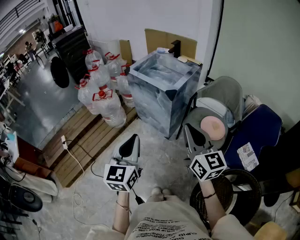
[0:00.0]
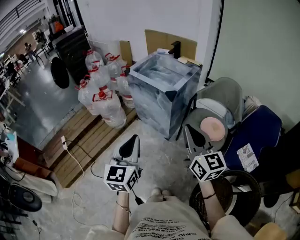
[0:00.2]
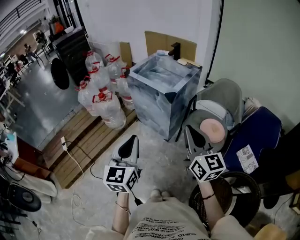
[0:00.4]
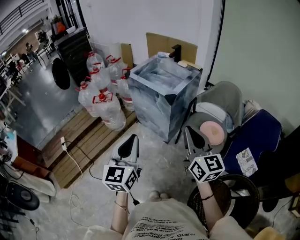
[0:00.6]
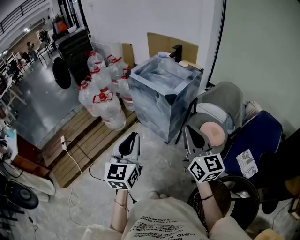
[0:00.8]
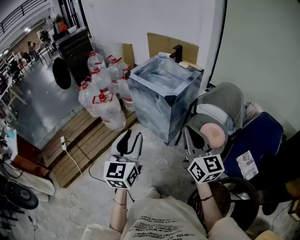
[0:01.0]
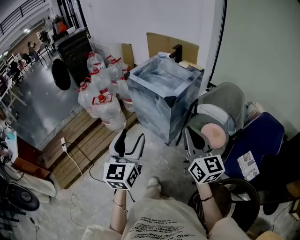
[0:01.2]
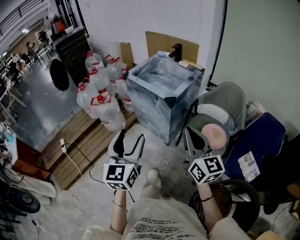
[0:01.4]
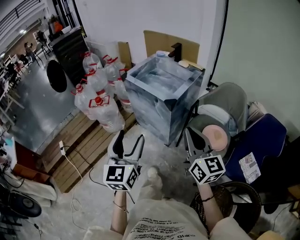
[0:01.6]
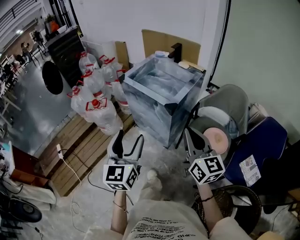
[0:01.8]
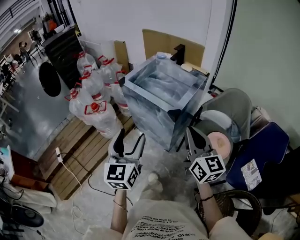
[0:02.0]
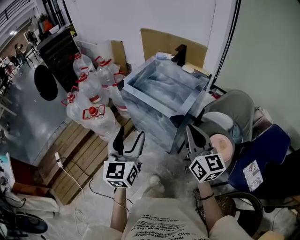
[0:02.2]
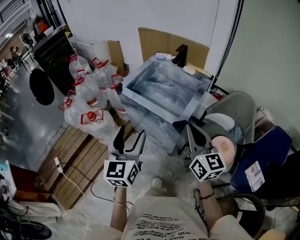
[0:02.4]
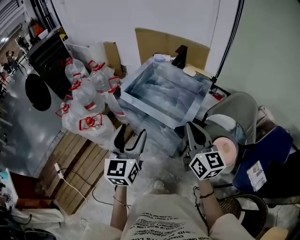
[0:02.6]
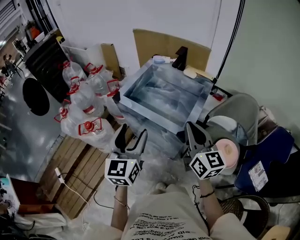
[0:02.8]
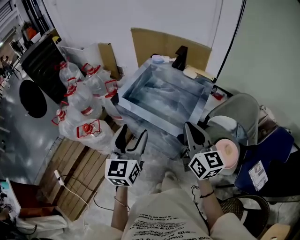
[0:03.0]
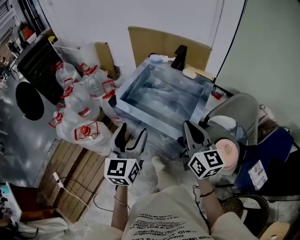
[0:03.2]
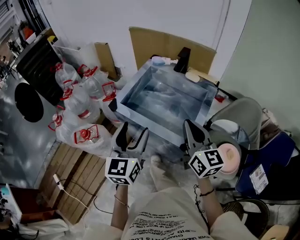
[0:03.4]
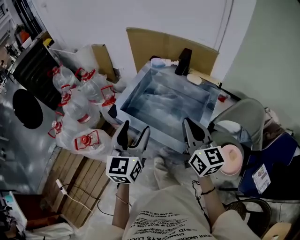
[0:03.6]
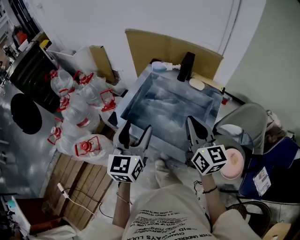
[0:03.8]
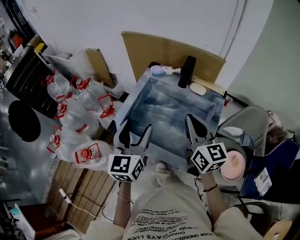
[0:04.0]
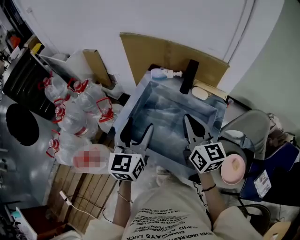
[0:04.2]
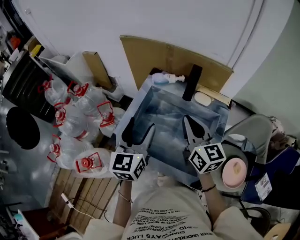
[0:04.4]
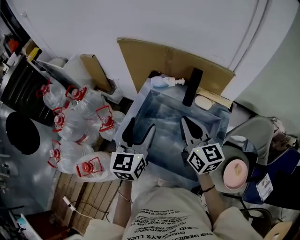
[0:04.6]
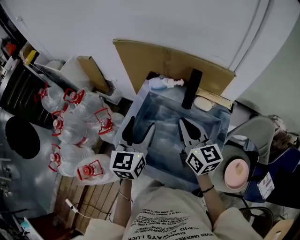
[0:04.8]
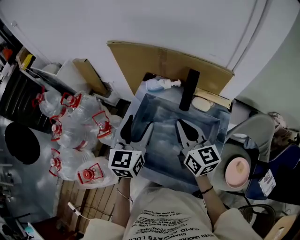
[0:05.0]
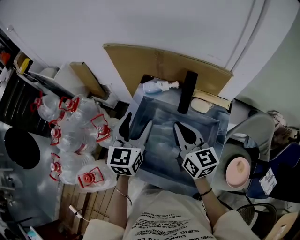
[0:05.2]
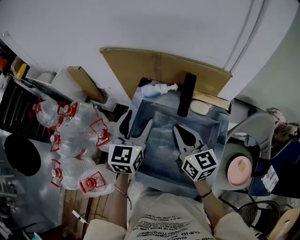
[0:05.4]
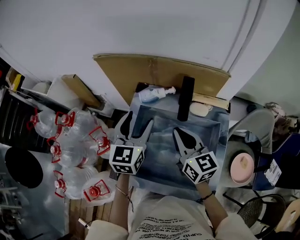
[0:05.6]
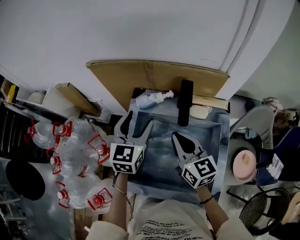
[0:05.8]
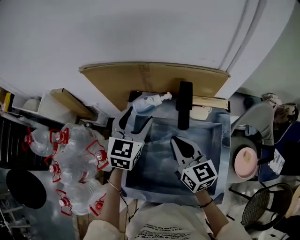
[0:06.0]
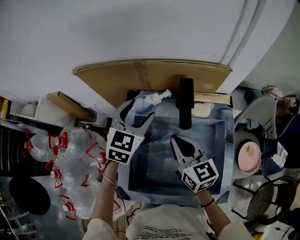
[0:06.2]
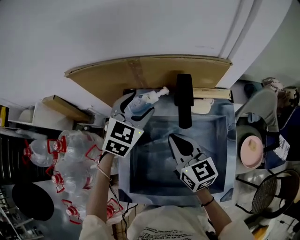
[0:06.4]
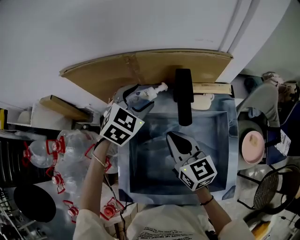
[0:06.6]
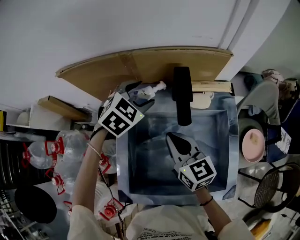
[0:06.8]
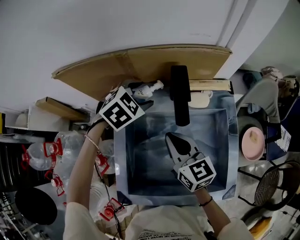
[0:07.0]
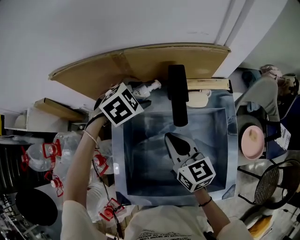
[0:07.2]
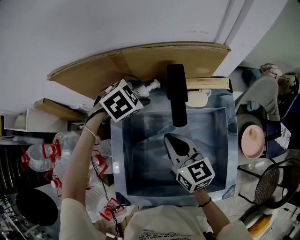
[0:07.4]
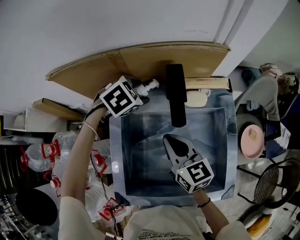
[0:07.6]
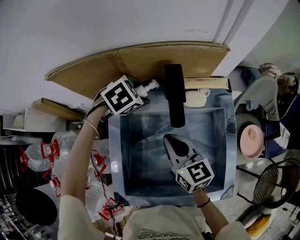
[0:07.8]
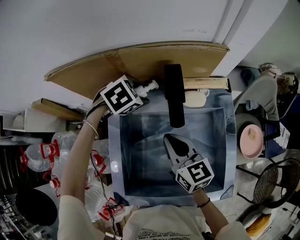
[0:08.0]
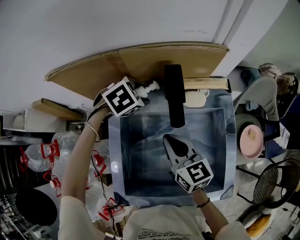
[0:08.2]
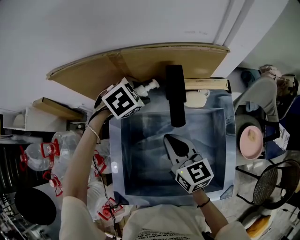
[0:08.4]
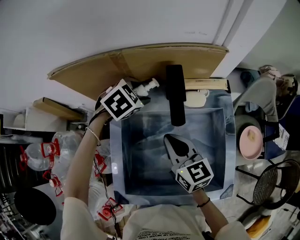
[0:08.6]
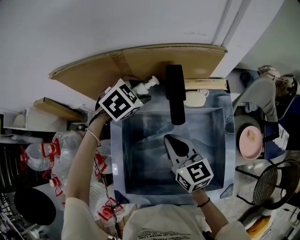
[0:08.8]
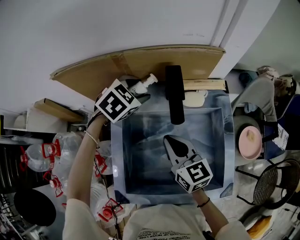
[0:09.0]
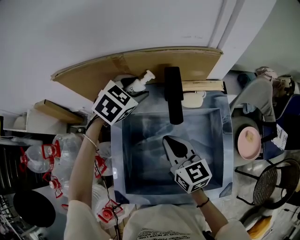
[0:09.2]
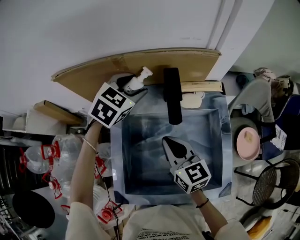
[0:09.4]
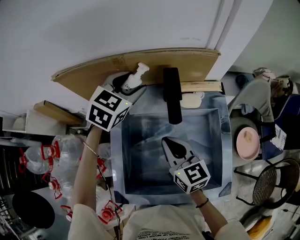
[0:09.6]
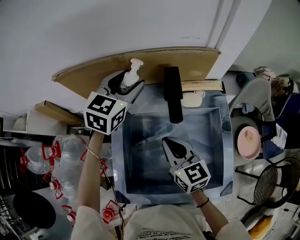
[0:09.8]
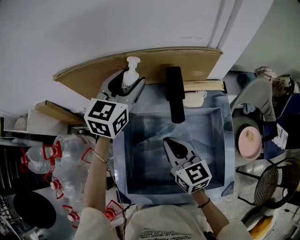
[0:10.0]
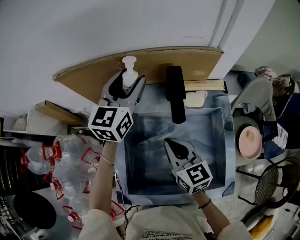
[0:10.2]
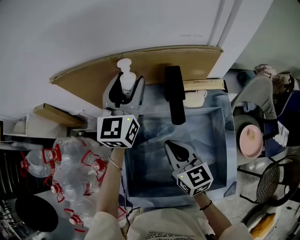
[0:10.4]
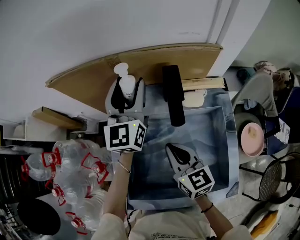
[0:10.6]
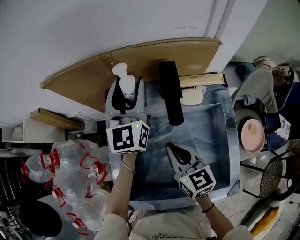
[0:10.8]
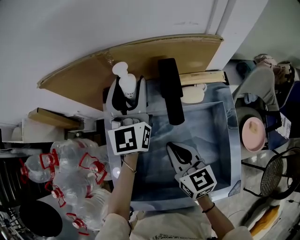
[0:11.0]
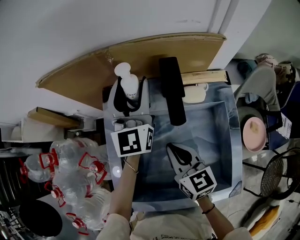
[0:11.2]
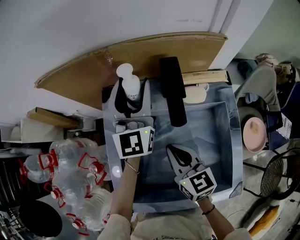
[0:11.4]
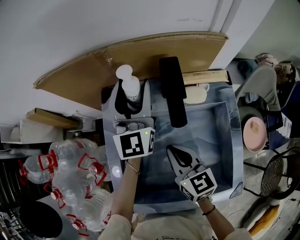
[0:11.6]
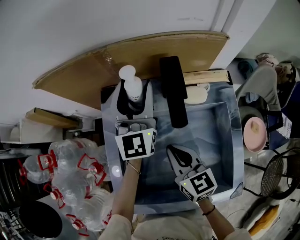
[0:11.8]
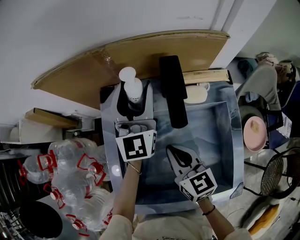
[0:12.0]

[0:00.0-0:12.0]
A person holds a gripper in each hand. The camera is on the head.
0.0 to 1.6 s: Both grippers travel together forward, approximately 10 cm. The left gripper opens.
1.6 to 3.0 s: The grippers both shift forward by approximately 30 cm.
3.0 to 4.4 s: The grippers both shift forward by some 30 cm.
4.4 to 6.0 s: The left gripper travels forward by approximately 20 cm, and rotates roughly 30 degrees, while the right gripper goes some 10 cm forward and downward.
6.0 to 7.6 s: The left gripper heads downward and forward, covering some 15 cm, and tilts its fingers about 40 degrees downward; the right gripper travels downward by about 5 cm.
7.6 to 9.0 s: The grippers stay close to where they were, moving slightly.
9.0 to 10.4 s: The left gripper travels upward by roughly 10 cm, and tips its fingers upward by roughly 50 degrees.
10.4 to 12.0 s: The left gripper ends up approximately 5 cm from where it was.

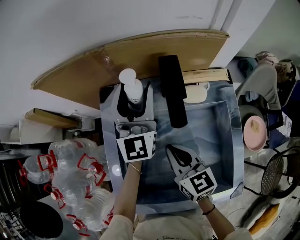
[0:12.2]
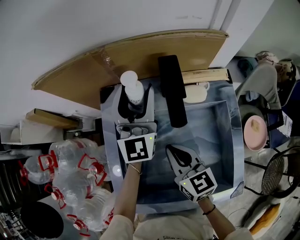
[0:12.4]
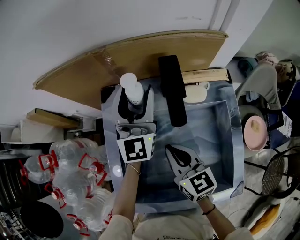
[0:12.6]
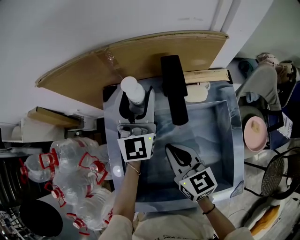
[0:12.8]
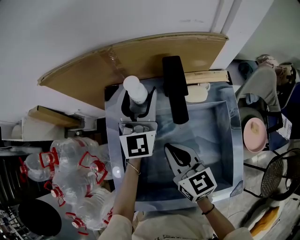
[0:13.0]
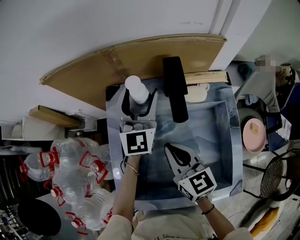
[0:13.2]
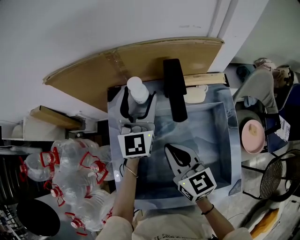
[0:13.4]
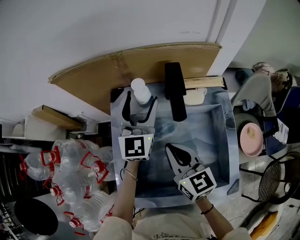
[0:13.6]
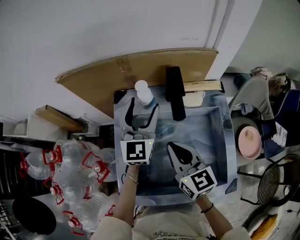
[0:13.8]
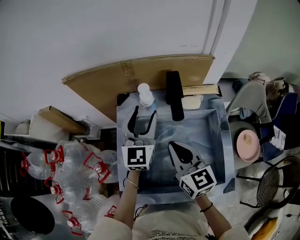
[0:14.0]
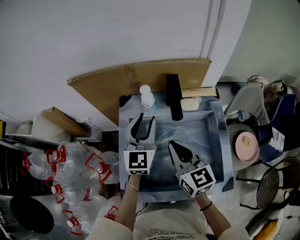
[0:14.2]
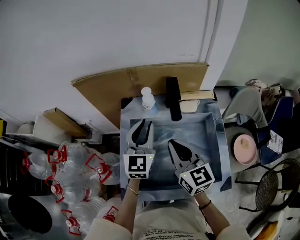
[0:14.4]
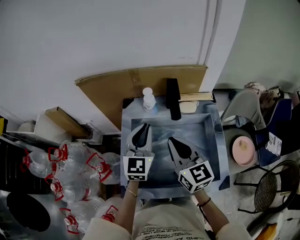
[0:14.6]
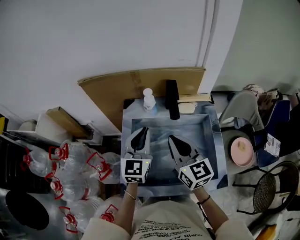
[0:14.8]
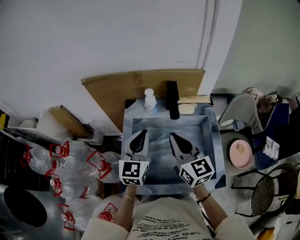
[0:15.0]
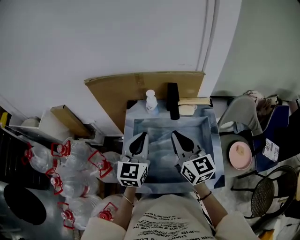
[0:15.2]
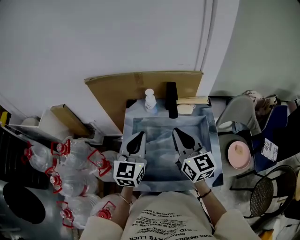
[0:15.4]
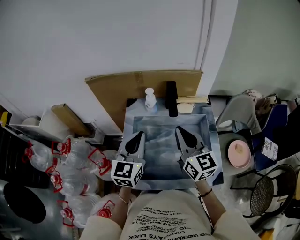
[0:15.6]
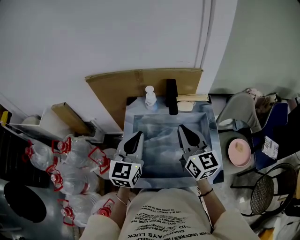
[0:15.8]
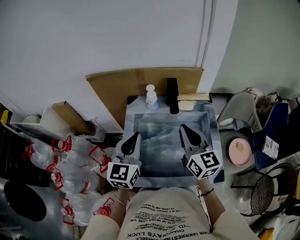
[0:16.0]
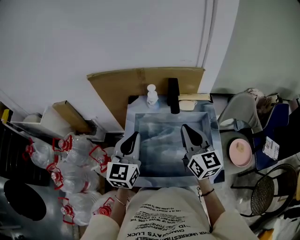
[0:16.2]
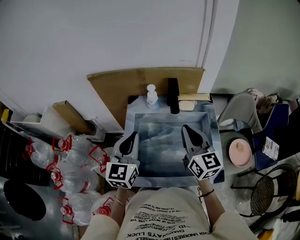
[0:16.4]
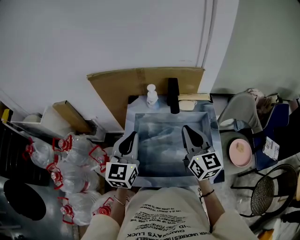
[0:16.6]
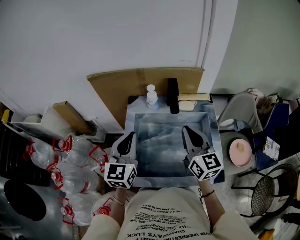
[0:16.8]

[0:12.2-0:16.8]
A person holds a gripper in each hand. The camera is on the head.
12.2 to 13.8 s: The right gripper is displaced upward by roughly 5 cm. Meanwhile the left gripper shifts by roughly 5 cm.
13.8 to 15.2 s: The right gripper goes about 10 cm upward. Meanwhile the left gripper goes approximately 15 cm backward, and closes its fingers.
15.2 to 16.8 s: The left gripper moves approximately 5 cm.

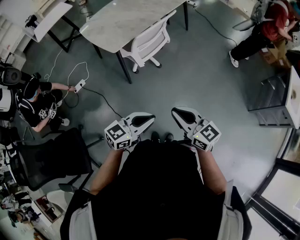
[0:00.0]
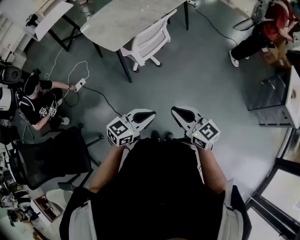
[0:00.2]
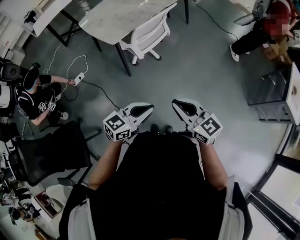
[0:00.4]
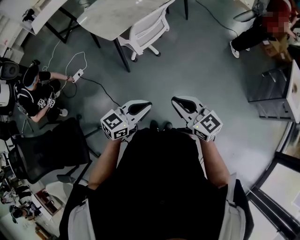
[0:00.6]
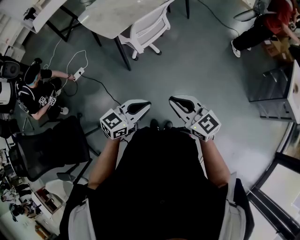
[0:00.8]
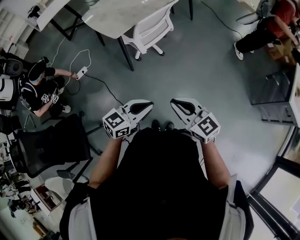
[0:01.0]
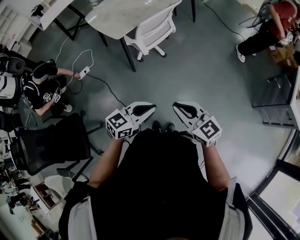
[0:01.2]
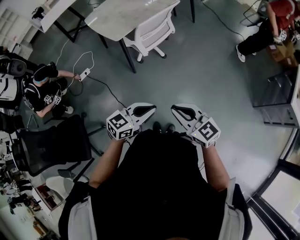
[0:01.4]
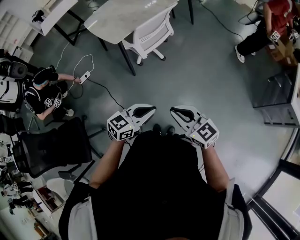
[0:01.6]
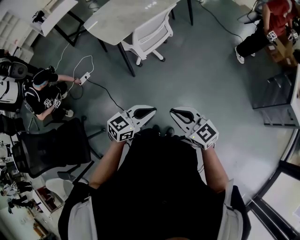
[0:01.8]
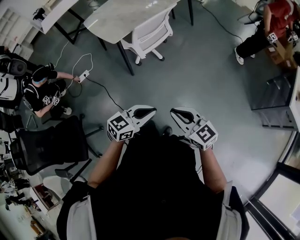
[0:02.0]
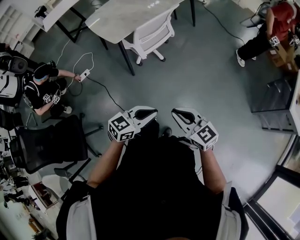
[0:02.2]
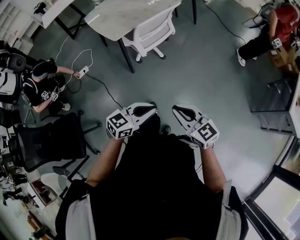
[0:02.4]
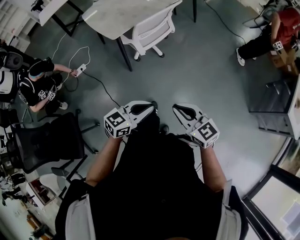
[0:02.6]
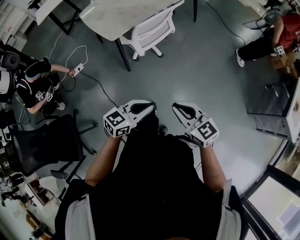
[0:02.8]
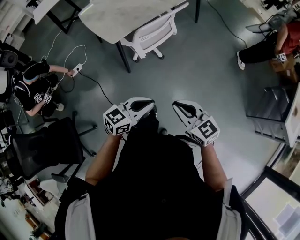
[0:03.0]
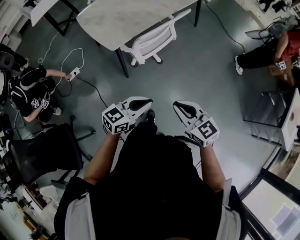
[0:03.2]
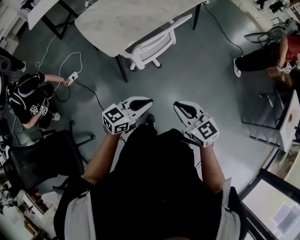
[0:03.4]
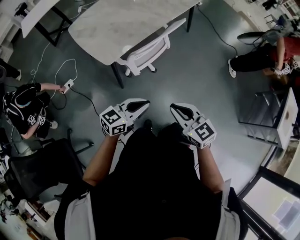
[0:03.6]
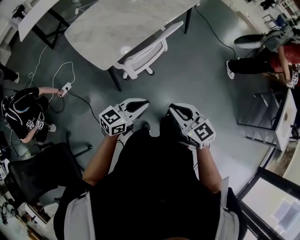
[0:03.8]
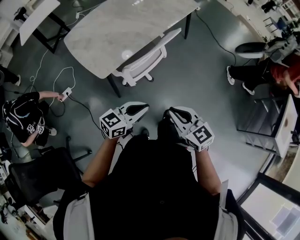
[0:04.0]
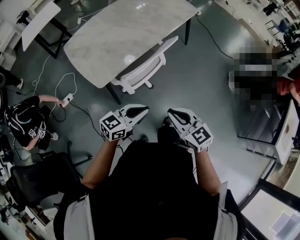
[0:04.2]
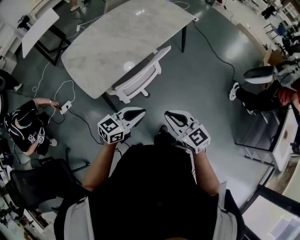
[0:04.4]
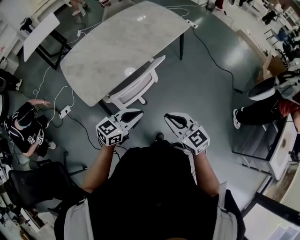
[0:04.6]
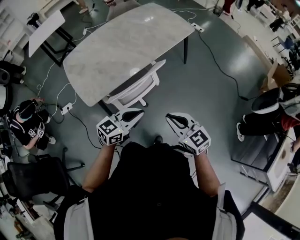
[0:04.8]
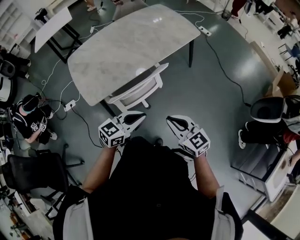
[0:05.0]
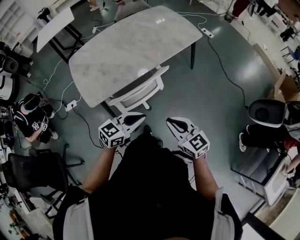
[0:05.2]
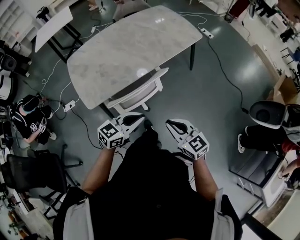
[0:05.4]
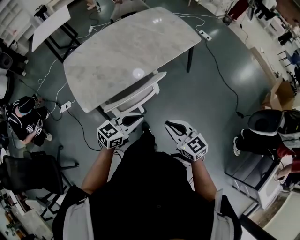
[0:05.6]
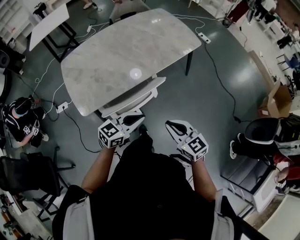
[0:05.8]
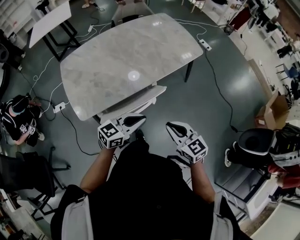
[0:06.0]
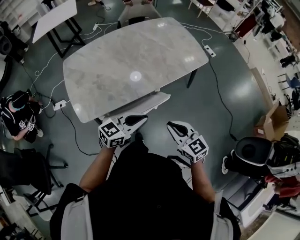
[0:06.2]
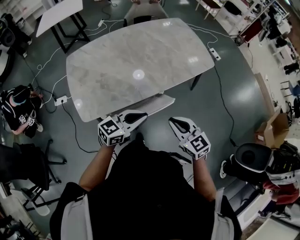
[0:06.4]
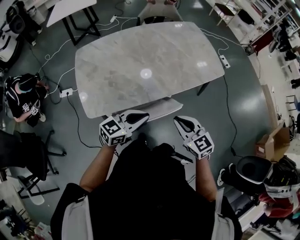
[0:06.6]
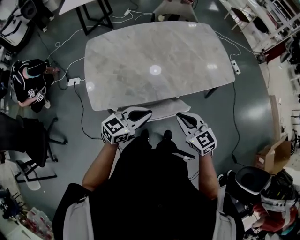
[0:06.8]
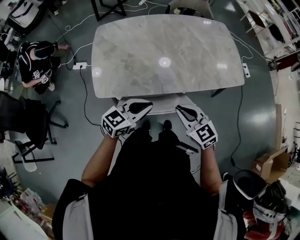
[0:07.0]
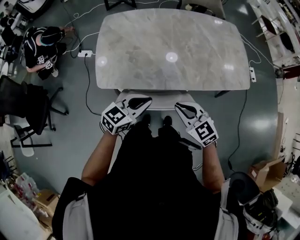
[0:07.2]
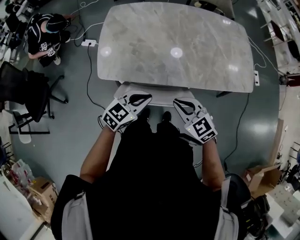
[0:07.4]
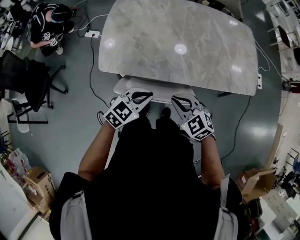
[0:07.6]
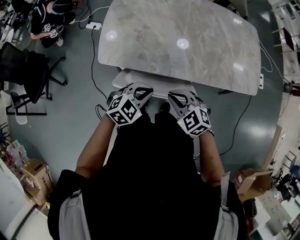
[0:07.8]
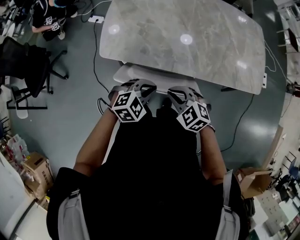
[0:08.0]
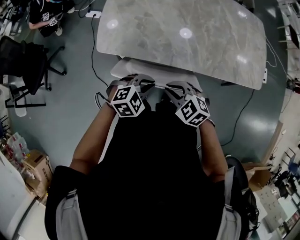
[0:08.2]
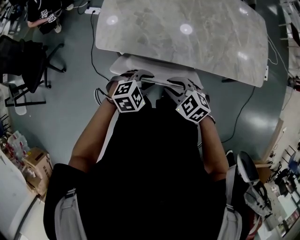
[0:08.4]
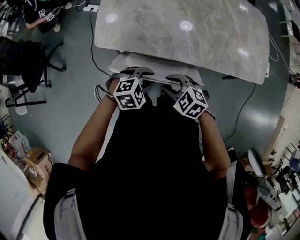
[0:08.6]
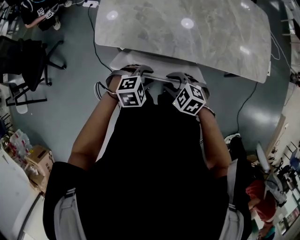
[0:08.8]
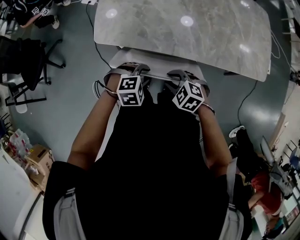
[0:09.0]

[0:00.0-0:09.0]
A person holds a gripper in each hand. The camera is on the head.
0.0 to 1.6 s: The left gripper shifts by roughly 5 cm, while the right gripper changes place by about 5 cm.
1.6 to 3.0 s: The two grippers go approximately 15 cm forward.
3.0 to 4.4 s: The grippers both shift forward by about 30 cm.
4.4 to 6.0 s: The left gripper heads forward, covering about 20 cm, while the right gripper heads forward and to the right, covering about 25 cm.
6.0 to 7.6 s: The left gripper shifts by some 15 cm, and changes its angle by some 40 degrees. The right gripper moves approximately 20 cm, and turns by some 60 degrees.
7.6 to 9.0 s: Both grippers move downward, about 10 cm. The left gripper angles its fingers downward, by roughly 30 degrees, and opens, while the right gripper rotates approximately 20 degrees, and opens up.
